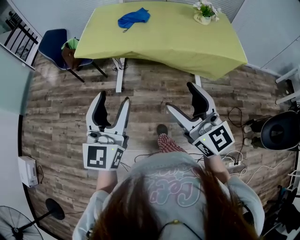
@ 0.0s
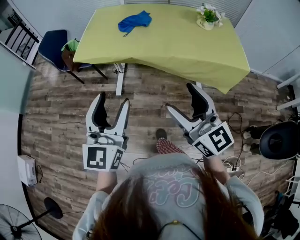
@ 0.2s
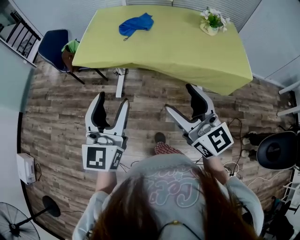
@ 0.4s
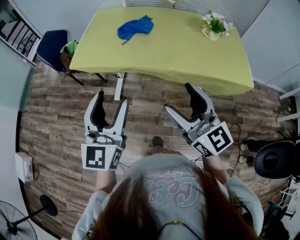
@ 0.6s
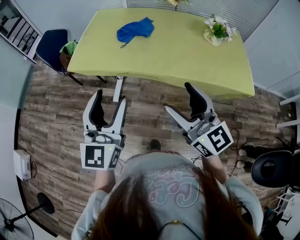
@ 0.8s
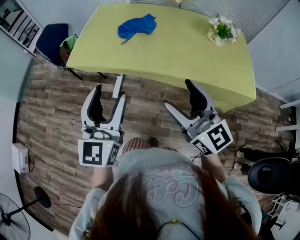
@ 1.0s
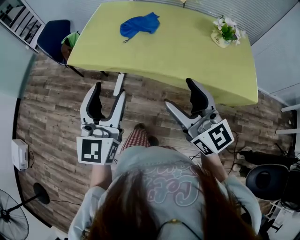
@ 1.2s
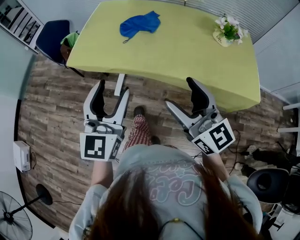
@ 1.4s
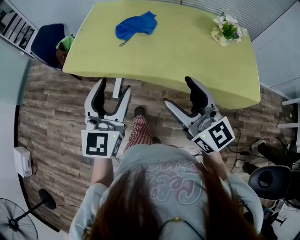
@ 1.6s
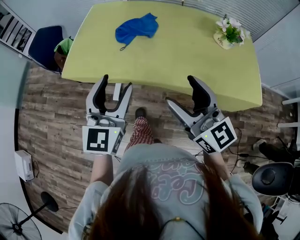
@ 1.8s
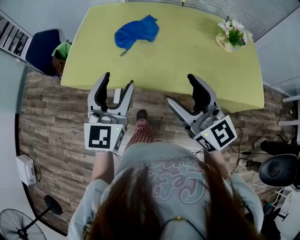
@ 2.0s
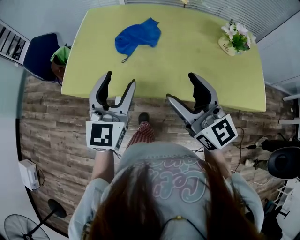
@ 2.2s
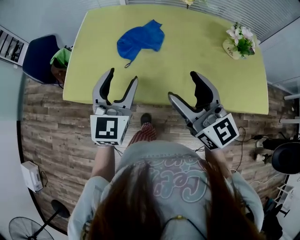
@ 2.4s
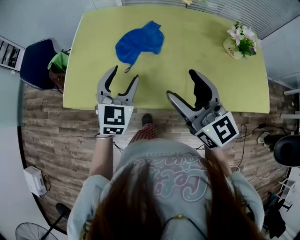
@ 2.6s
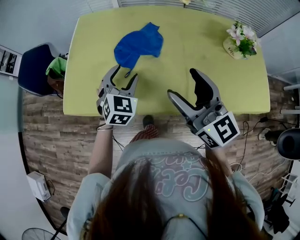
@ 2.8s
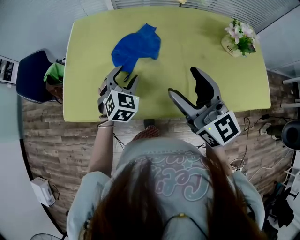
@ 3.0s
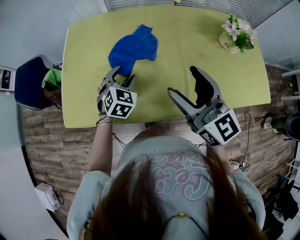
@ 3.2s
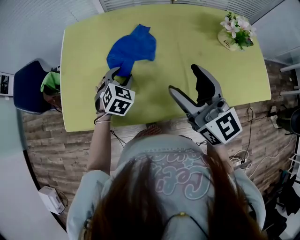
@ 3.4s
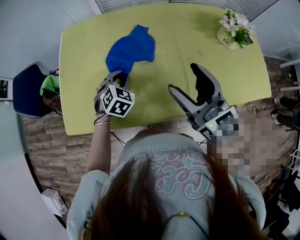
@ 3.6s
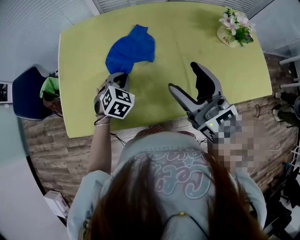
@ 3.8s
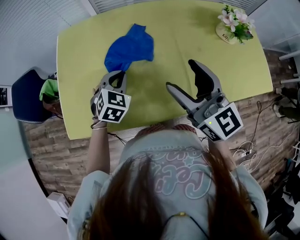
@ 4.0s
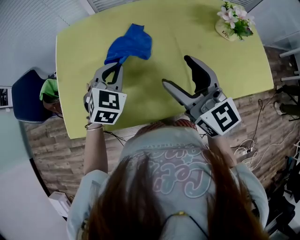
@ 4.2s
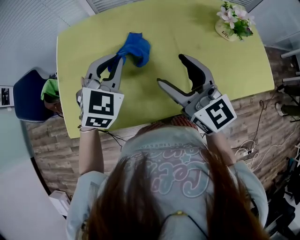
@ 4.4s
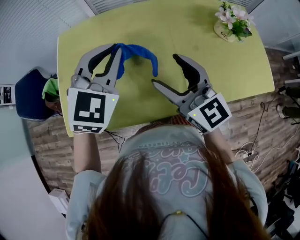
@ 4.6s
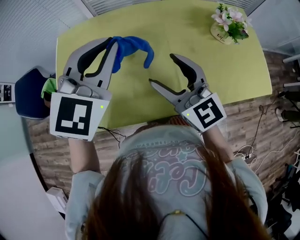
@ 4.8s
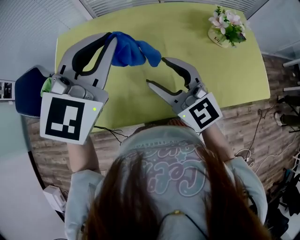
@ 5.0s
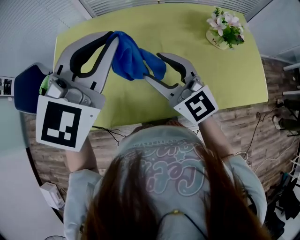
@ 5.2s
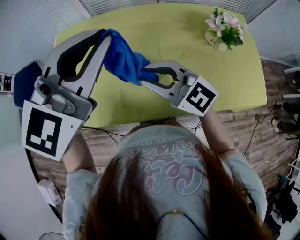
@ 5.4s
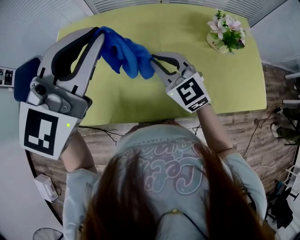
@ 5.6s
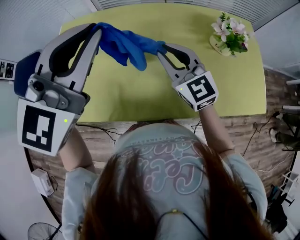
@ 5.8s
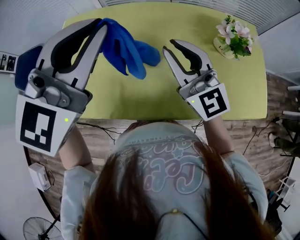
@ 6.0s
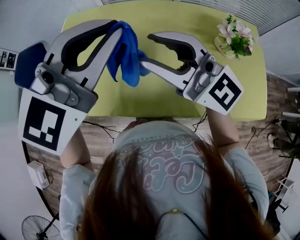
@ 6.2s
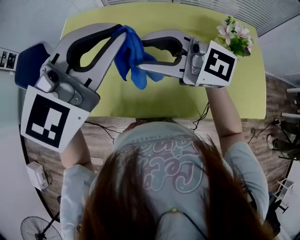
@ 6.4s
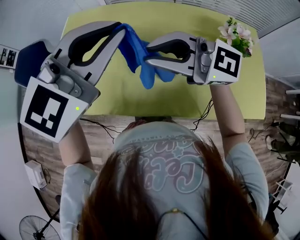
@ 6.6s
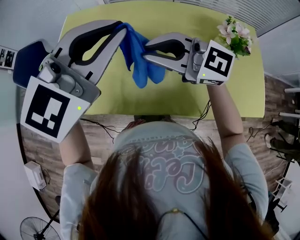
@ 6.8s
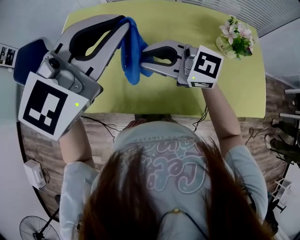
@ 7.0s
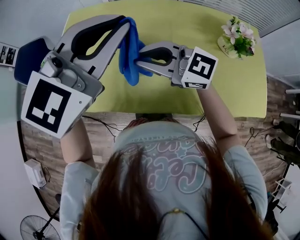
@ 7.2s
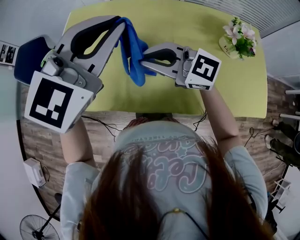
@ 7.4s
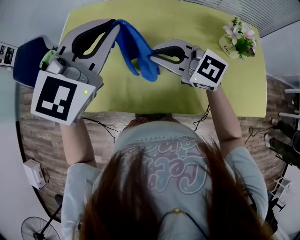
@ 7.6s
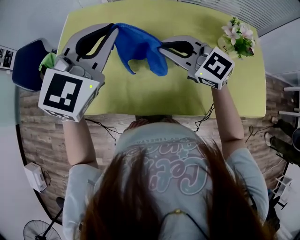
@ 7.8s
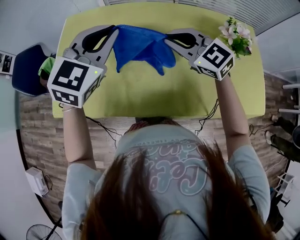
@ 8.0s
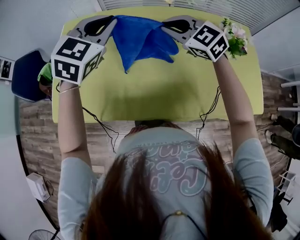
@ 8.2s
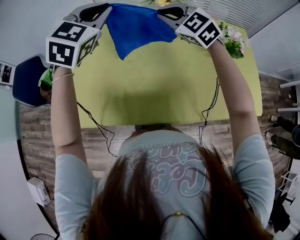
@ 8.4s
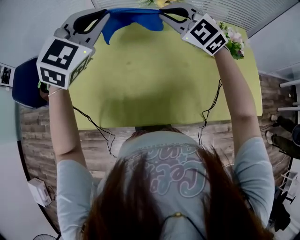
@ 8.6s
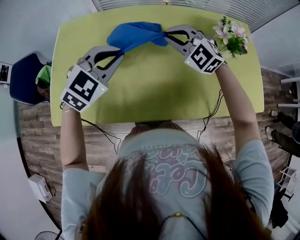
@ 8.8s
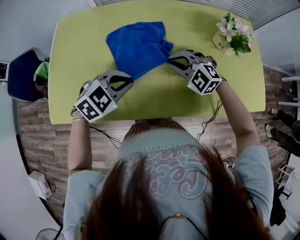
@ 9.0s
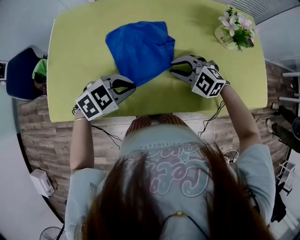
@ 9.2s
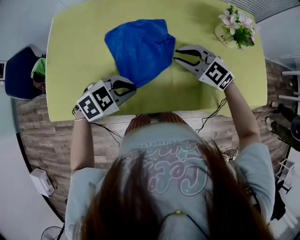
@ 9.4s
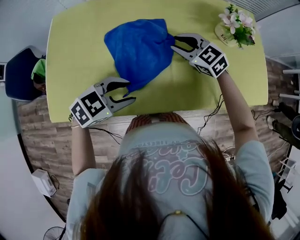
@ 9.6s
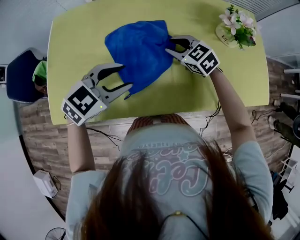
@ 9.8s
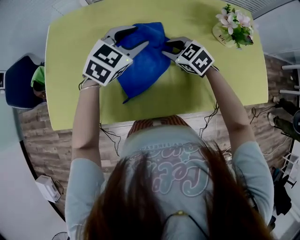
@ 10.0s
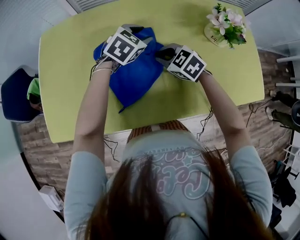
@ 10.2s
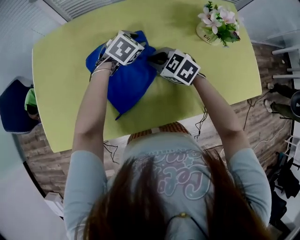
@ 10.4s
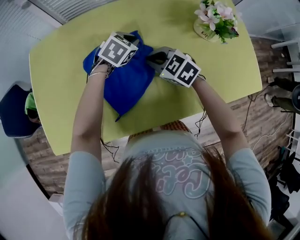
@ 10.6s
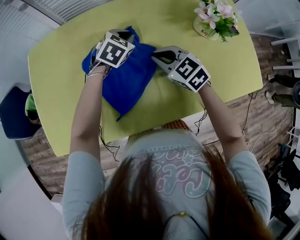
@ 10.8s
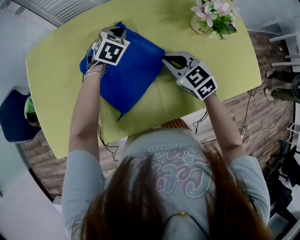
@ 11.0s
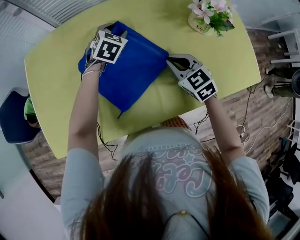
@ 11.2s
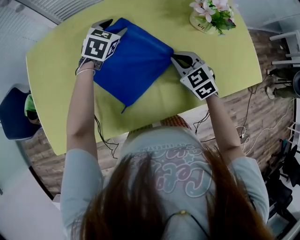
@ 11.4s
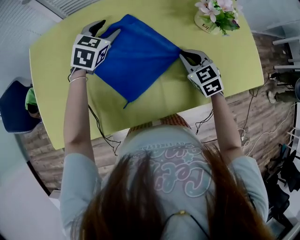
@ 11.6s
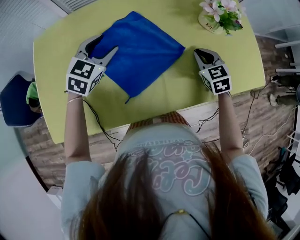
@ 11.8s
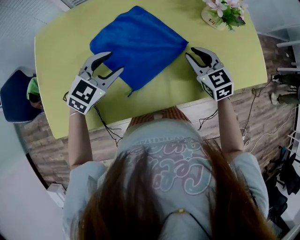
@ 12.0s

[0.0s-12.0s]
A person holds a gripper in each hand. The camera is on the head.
0.0s to 1.6s: The right gripper shifts approximately 25 cm forward. Meanwhile the left gripper travels forward and to the right by about 25 cm.
1.6s to 3.0s: The left gripper is displaced forward and downward by about 35 cm, and angles its fingers downward, by roughly 30 degrees. The right gripper moves forward, some 20 cm.
3.0s to 4.4s: The left gripper is displaced upward by some 10 cm, and closes. Meanwhile the right gripper moves some 5 cm.
4.4s to 6.0s: The left gripper is displaced upward and to the right by about 20 cm, and swivels about 20 degrees. The right gripper moves to the right, forward and upward, some 10 cm, swivels approximately 20 degrees, and closes up.
6.0s to 7.6s: The left gripper shifts some 5 cm downward. Meanwhile the right gripper changes place by approximately 10 cm, and rotates some 40 degrees.
7.6s to 9.0s: The left gripper swings up and down, approximately 25 cm each way, with 2 reversals, and angles its fingers downward, by approximately 30 degrees. Meanwhile the right gripper travels downward by approximately 15 cm, and changes its angle by roughly 40 degrees.
9.0s to 10.4s: The left gripper moves some 25 cm, and opens its fingers. Meanwhile the right gripper ends up approximately 5 cm from where it was, and swivels roughly 40 degrees.
10.4s to 12.0s: The left gripper goes approximately 20 cm backward and to the left, and closes and opens again. The right gripper shifts roughly 15 cm to the right and backward, and changes its angle by approximately 30 degrees.

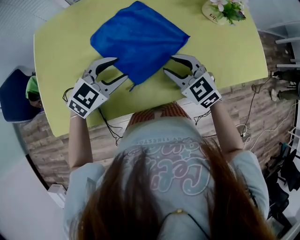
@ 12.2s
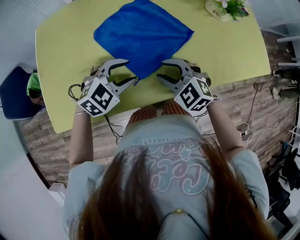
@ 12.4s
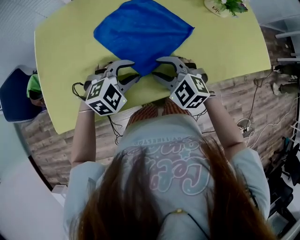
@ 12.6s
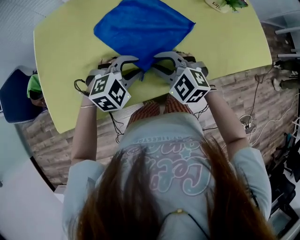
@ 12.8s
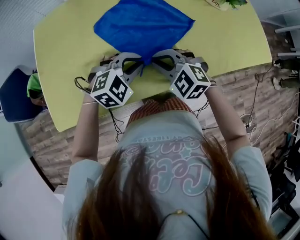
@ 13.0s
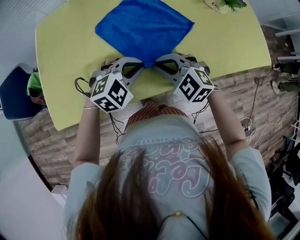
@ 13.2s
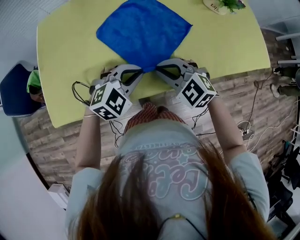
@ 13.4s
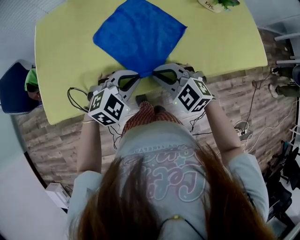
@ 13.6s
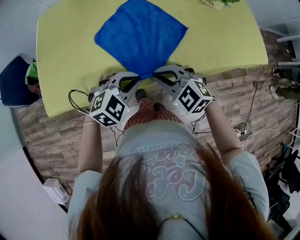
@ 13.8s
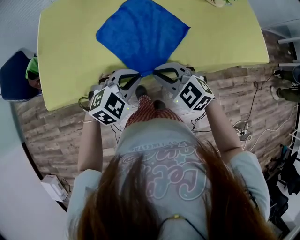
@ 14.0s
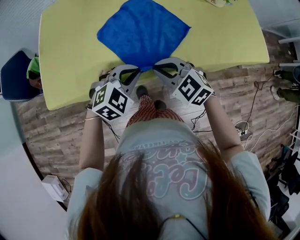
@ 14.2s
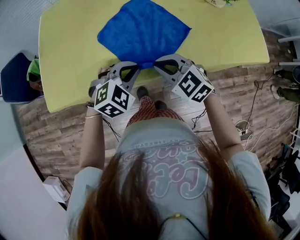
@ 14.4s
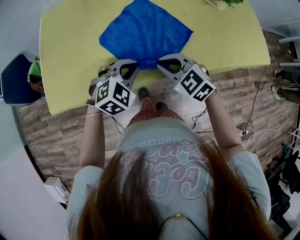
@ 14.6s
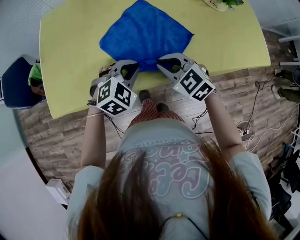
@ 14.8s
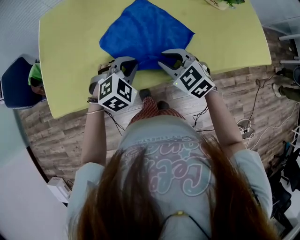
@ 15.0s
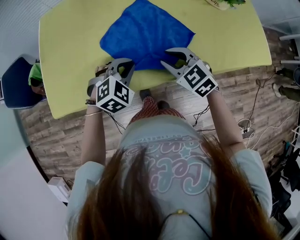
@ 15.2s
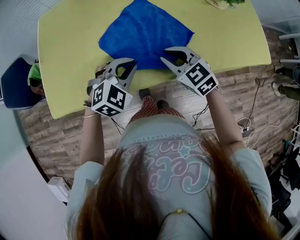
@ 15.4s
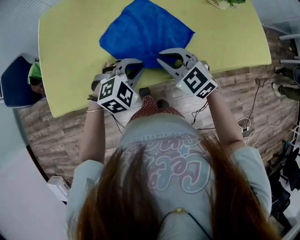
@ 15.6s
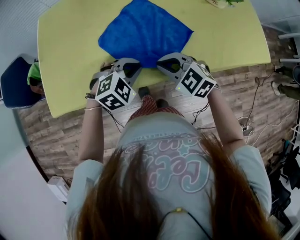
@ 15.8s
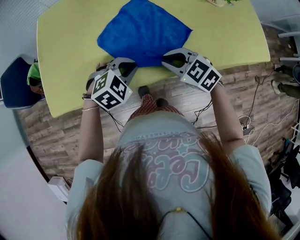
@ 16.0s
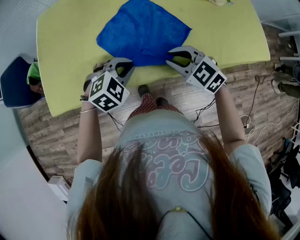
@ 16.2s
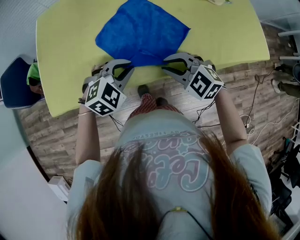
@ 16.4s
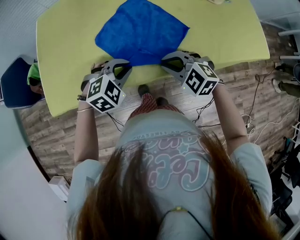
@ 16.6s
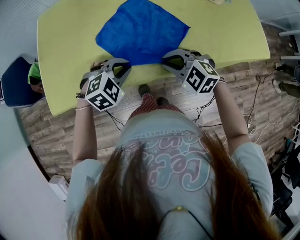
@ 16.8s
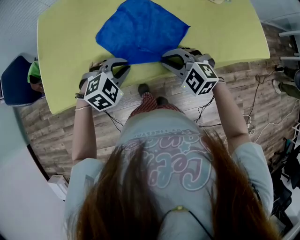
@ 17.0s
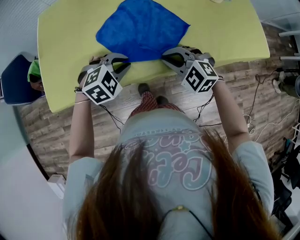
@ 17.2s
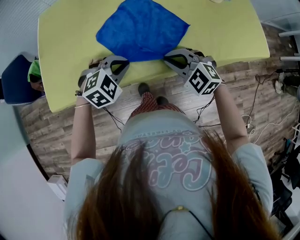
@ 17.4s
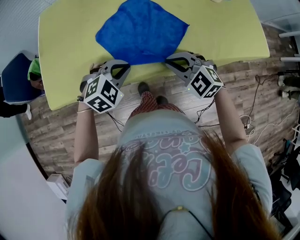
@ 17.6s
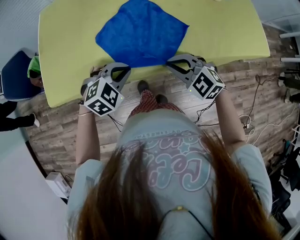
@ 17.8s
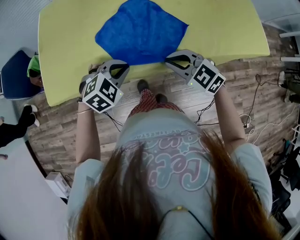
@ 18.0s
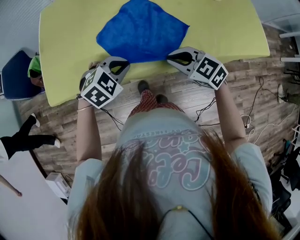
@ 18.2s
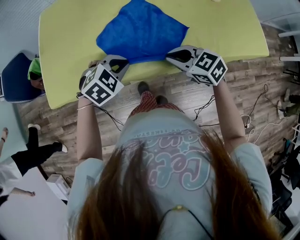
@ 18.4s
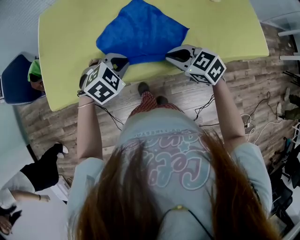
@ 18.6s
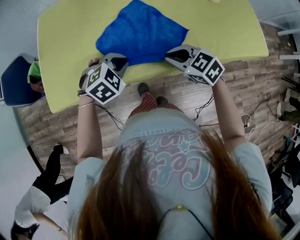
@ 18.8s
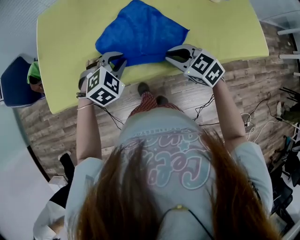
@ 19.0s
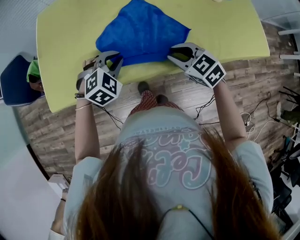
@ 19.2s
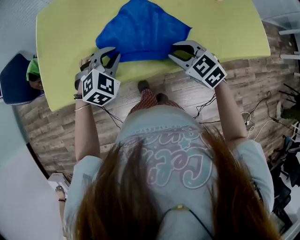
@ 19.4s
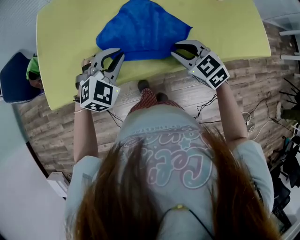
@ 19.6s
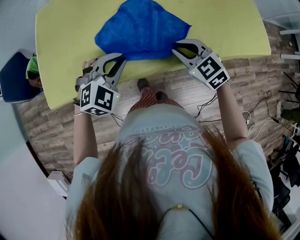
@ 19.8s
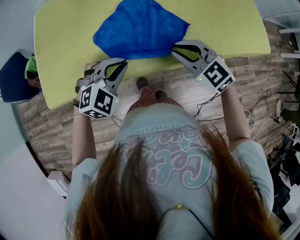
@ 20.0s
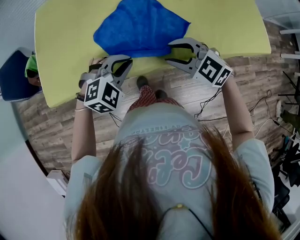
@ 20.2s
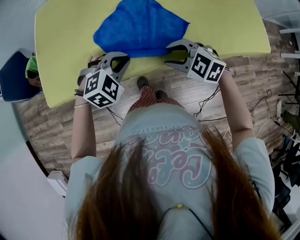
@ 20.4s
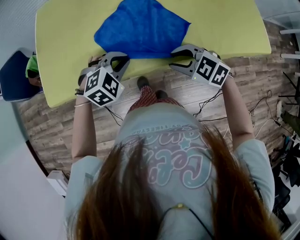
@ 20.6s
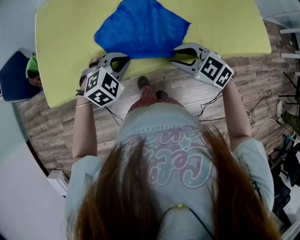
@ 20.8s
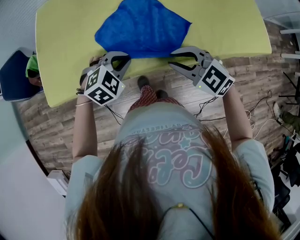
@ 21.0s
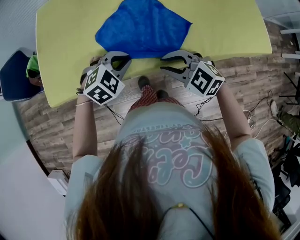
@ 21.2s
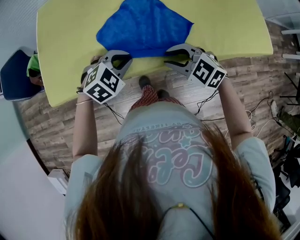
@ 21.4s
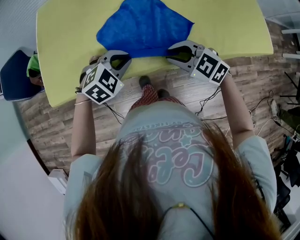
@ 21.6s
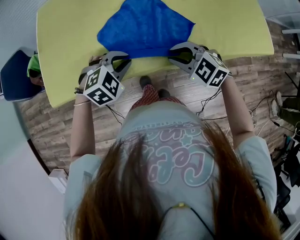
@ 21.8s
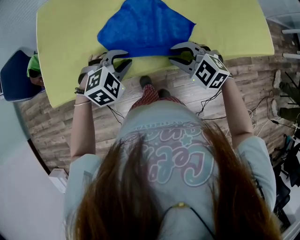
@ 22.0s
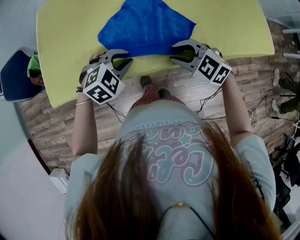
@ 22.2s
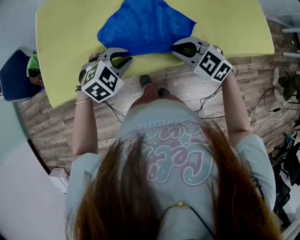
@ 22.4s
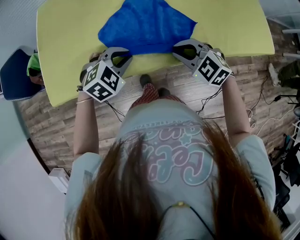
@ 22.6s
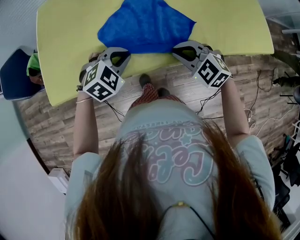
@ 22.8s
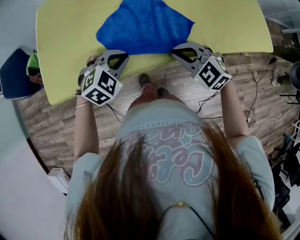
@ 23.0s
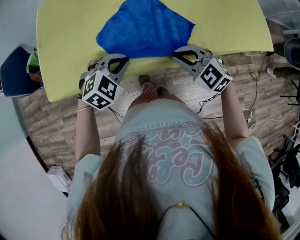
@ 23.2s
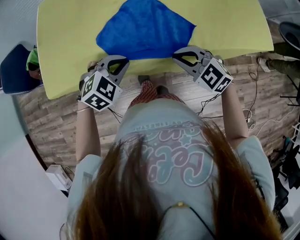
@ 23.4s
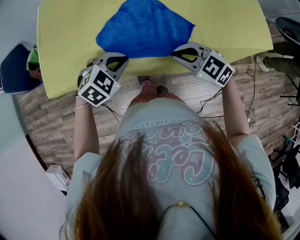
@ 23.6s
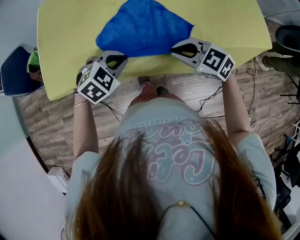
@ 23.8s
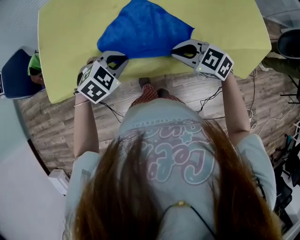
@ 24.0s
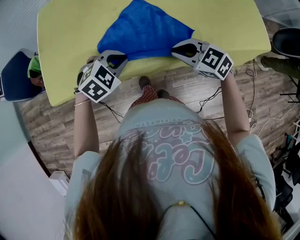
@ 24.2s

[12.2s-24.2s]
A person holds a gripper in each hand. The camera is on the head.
12.2s to 13.8s: The right gripper shifts approximately 15 cm backward, and closes up. Meanwhile the left gripper travels backward and to the right by roughly 15 cm, and closes up.
13.8s to 15.2s: Both grippers move forward, roughly 10 cm.
15.2s to 16.6s: The right gripper changes place by about 5 cm, and rotates roughly 20 degrees.
16.6s to 18.2s: The right gripper rotates roughly 20 degrees.
18.2s to 19.8s: The right gripper ends up some 5 cm from where it was. The left gripper turns by roughly 20 degrees.
19.8s to 21.2s: The right gripper travels to the left and backward by roughly 10 cm, and turns by approximately 20 degrees.
21.2s to 22.6s: The right gripper moves some 5 cm.
22.6s to 24.2s: The grippers stay close to where they were, moving slightly.
